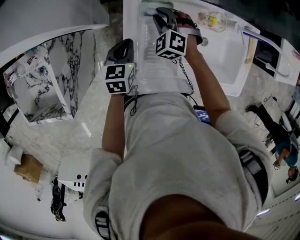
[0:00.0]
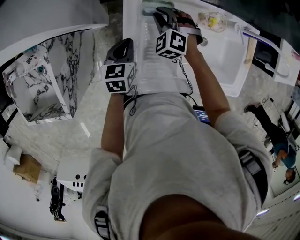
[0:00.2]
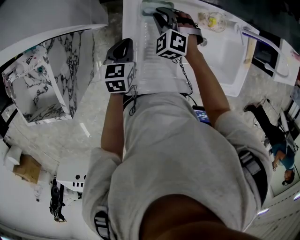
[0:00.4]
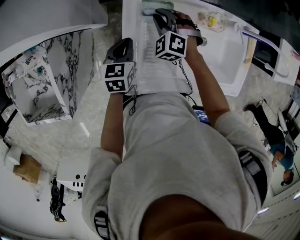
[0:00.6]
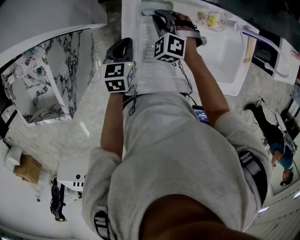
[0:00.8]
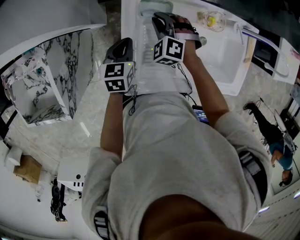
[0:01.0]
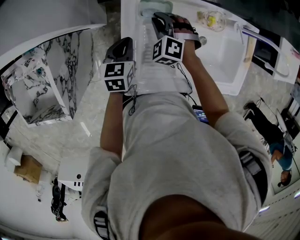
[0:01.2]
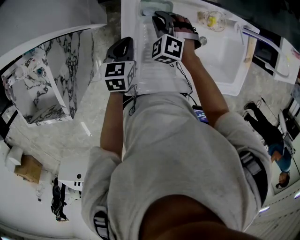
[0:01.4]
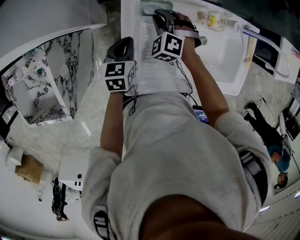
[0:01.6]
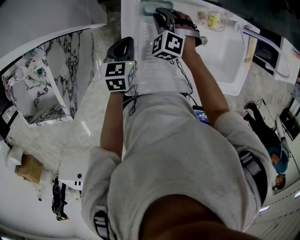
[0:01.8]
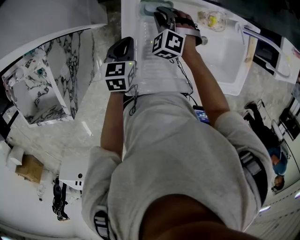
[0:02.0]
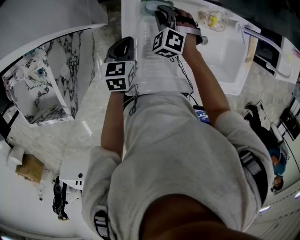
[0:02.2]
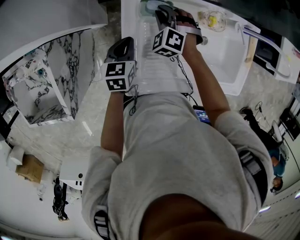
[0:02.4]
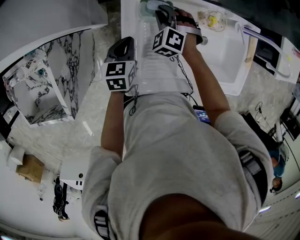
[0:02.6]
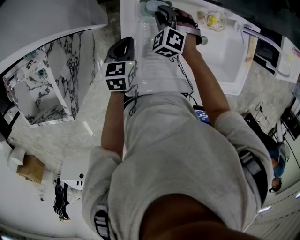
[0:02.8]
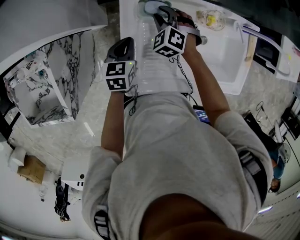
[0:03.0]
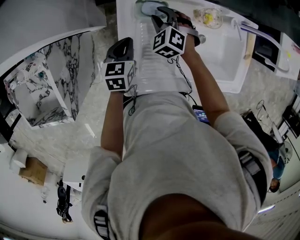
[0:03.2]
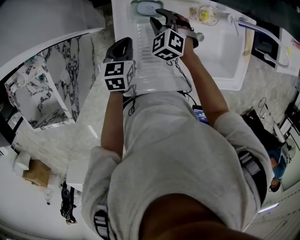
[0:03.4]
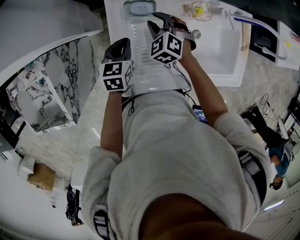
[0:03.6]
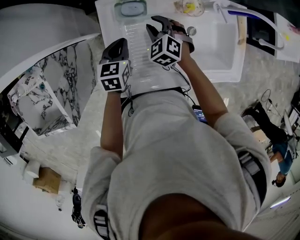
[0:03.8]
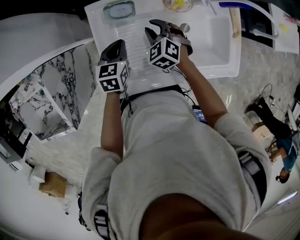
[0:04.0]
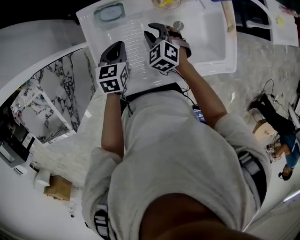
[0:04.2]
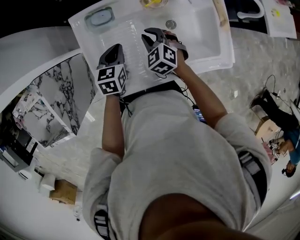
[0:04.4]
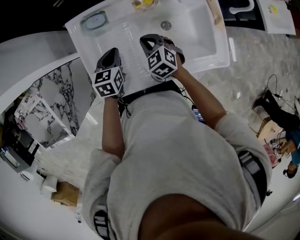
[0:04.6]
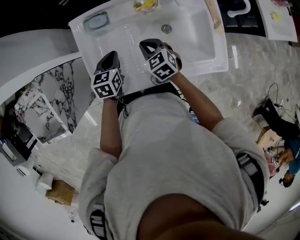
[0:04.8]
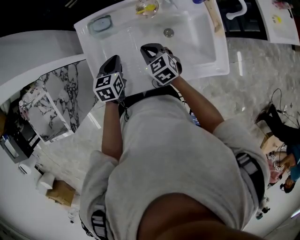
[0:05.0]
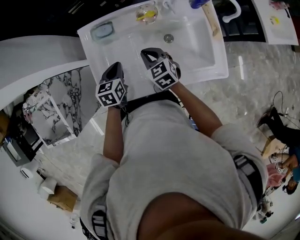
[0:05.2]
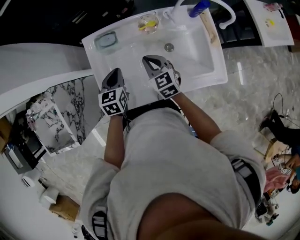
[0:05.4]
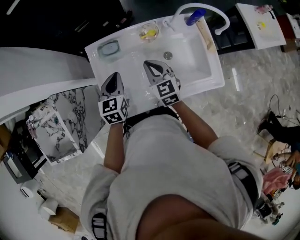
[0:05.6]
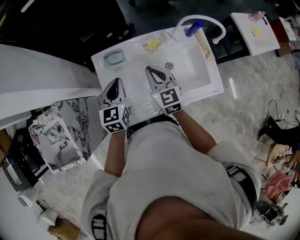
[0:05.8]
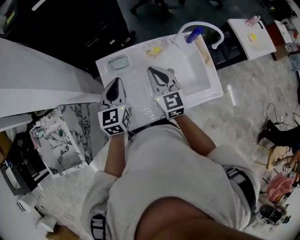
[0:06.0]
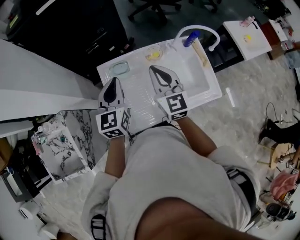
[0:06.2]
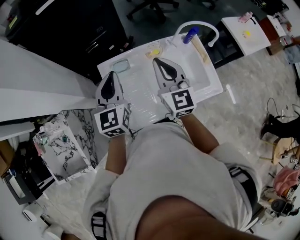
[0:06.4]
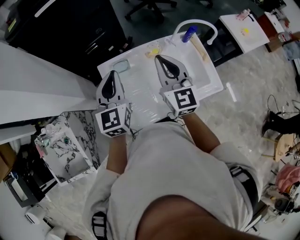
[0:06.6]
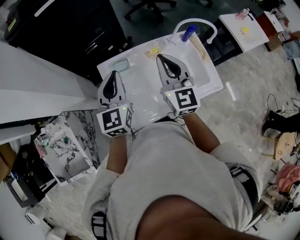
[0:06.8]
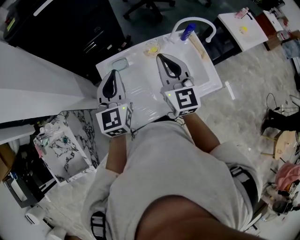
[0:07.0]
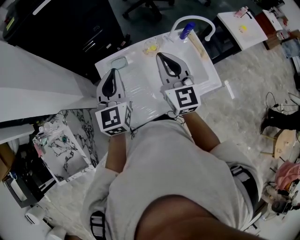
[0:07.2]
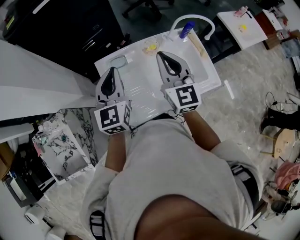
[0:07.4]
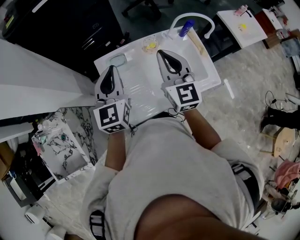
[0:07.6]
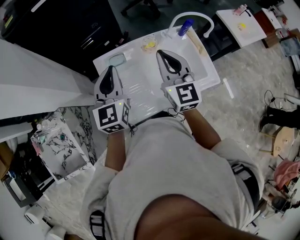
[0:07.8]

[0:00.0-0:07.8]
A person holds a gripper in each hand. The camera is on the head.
0:00.0 to 0:03.2: There are only small adjustments of the grippers.
0:03.2 to 0:04.6: The left gripper travels to the right by approximately 15 cm. The right gripper travels to the right and backward by approximately 20 cm, rotates about 30 degrees, and closes.
0:04.6 to 0:06.2: The two grippers go approximately 25 cm upward. The right gripper angles its fingers upward, by approximately 40 degrees; the left gripper angles its fingers upward, by roughly 30 degrees.
0:06.2 to 0:07.8: The right gripper shifts approximately 5 cm upward.

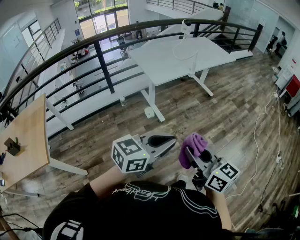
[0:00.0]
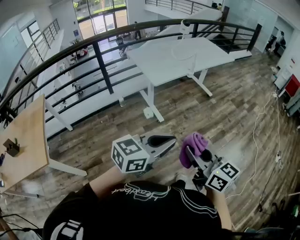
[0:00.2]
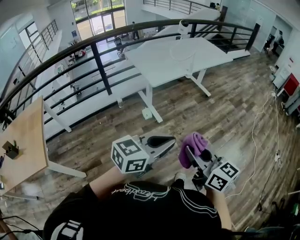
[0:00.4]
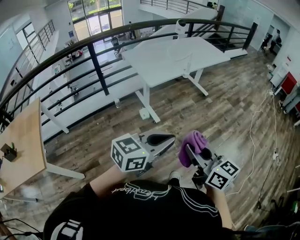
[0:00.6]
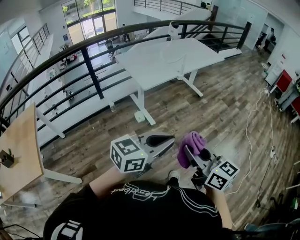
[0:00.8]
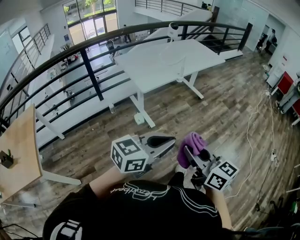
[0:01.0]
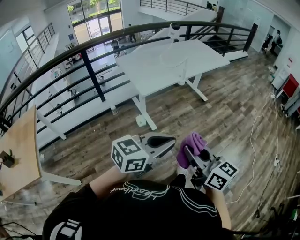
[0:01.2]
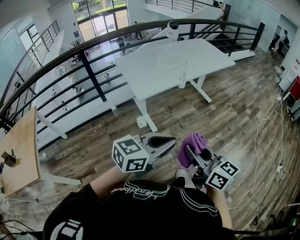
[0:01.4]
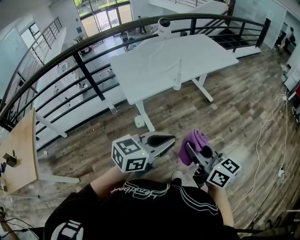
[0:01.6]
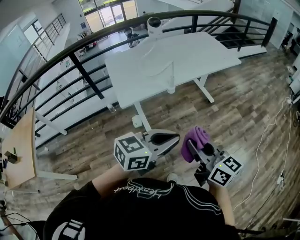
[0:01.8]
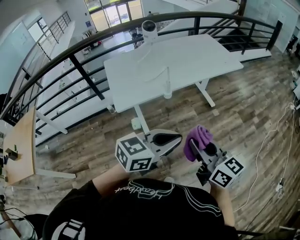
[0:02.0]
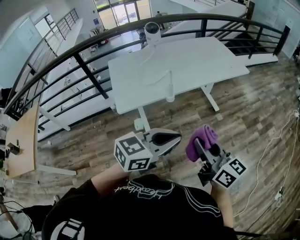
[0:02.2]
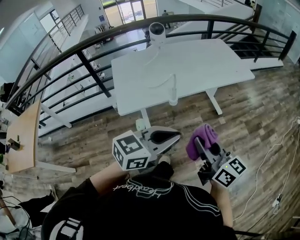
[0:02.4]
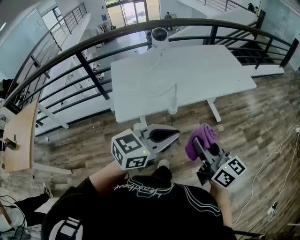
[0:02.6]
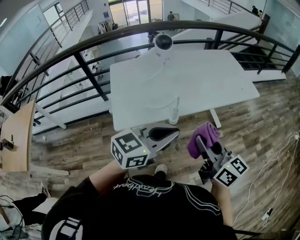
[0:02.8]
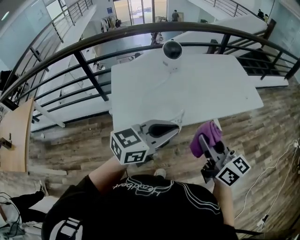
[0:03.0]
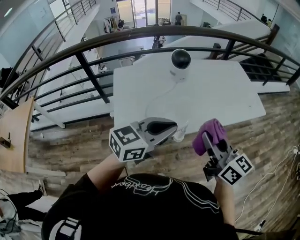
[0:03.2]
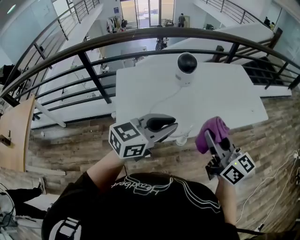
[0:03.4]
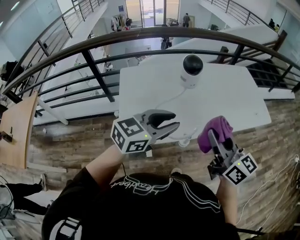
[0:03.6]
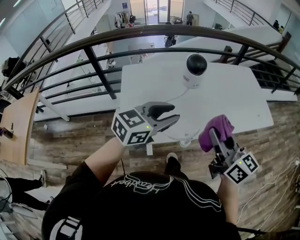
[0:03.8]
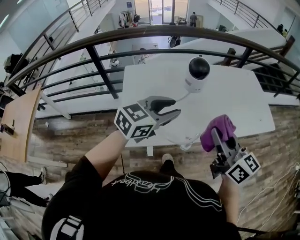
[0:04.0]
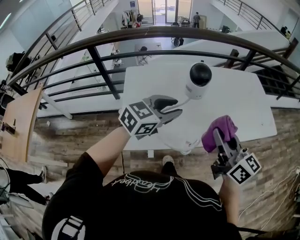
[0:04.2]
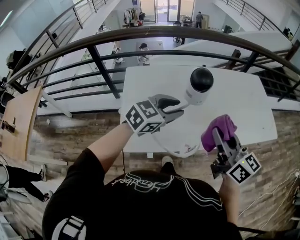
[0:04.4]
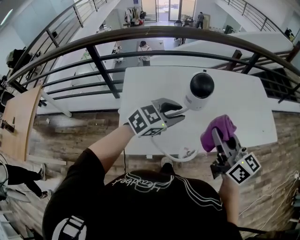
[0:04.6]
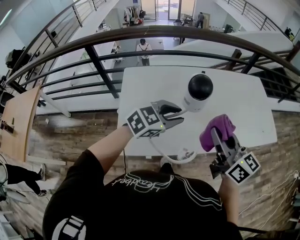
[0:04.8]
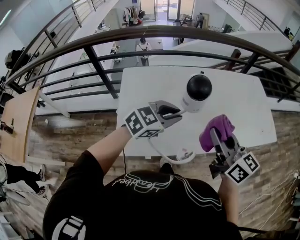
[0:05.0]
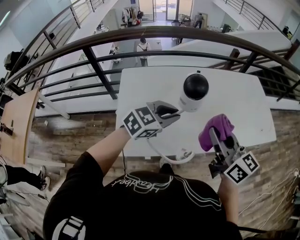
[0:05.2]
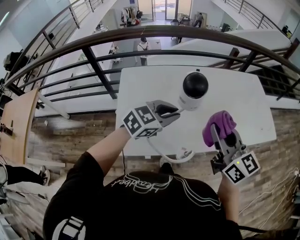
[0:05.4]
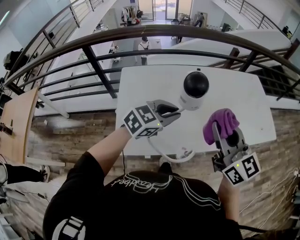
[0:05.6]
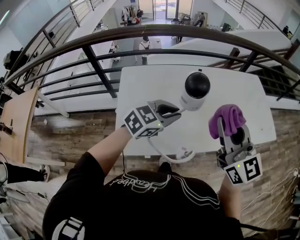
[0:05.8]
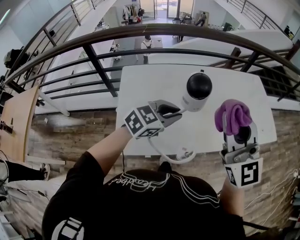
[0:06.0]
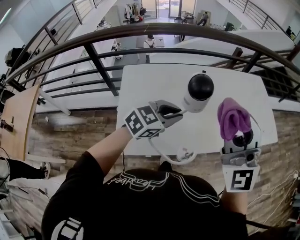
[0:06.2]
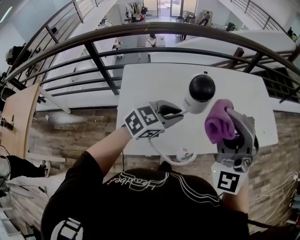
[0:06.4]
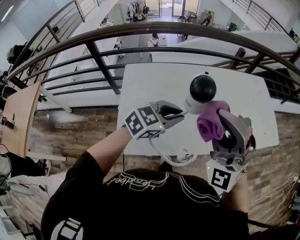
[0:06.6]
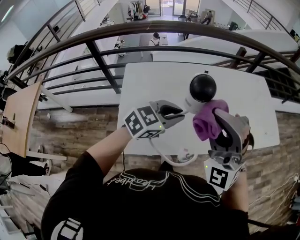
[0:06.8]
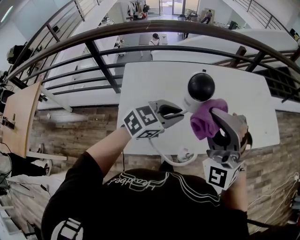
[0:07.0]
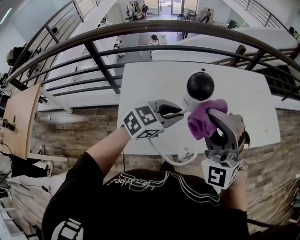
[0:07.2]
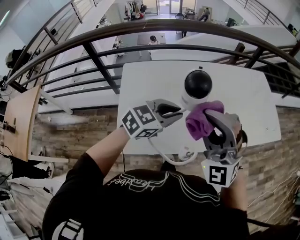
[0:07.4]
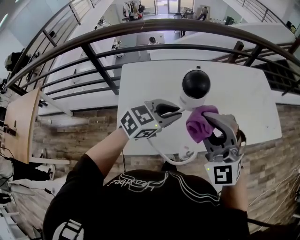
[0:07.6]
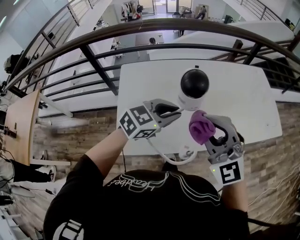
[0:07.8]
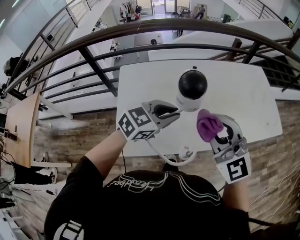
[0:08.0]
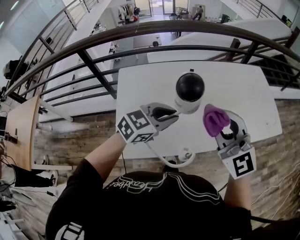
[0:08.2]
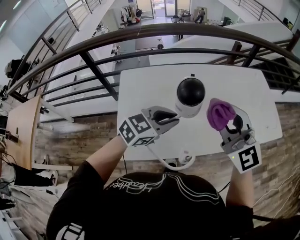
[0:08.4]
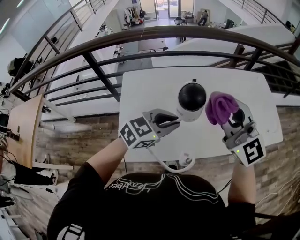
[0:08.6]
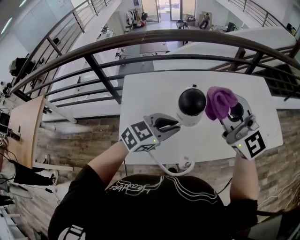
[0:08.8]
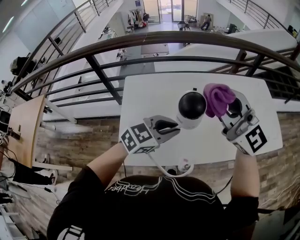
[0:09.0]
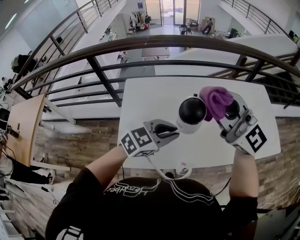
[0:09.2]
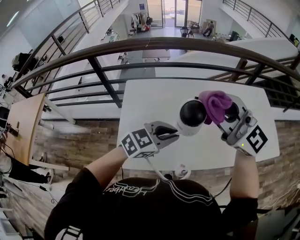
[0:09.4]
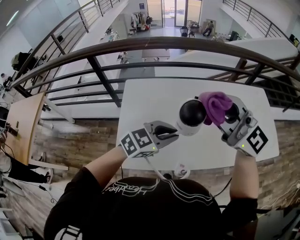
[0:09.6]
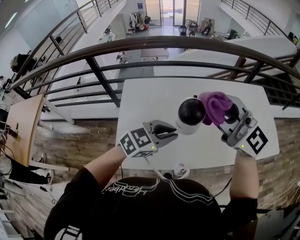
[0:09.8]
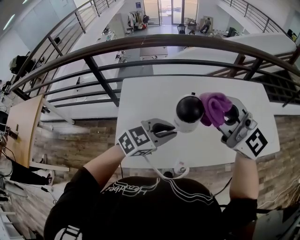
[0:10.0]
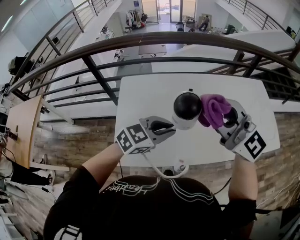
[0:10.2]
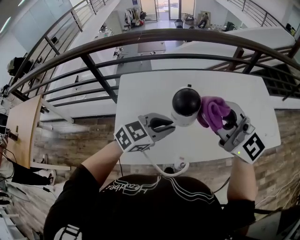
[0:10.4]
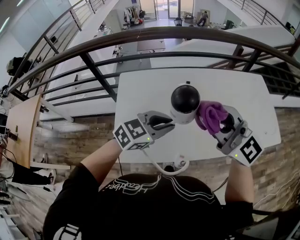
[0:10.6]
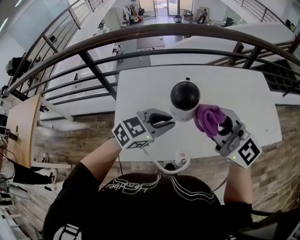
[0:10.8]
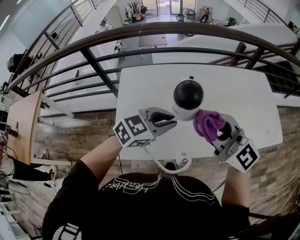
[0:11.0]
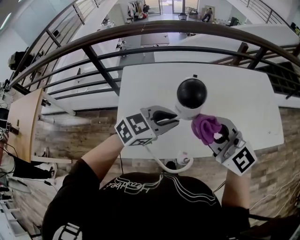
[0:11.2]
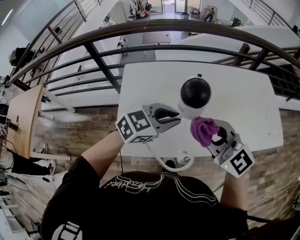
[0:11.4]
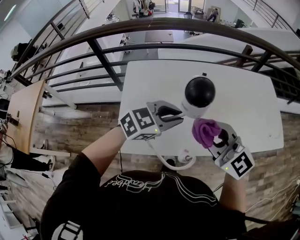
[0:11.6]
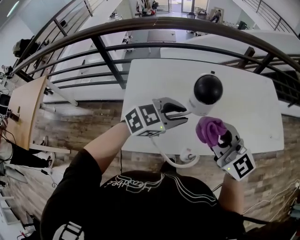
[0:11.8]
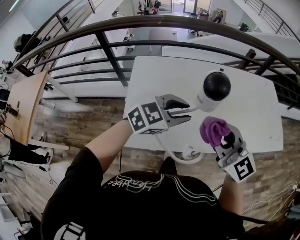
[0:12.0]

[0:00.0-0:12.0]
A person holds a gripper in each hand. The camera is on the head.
0:00.0 to 0:01.6: Both grippers move forward and to the right, about 35 cm.
0:01.6 to 0:03.0: The two grippers travel together, forward, about 40 cm.
0:03.0 to 0:04.4: The two grippers go roughly 20 cm forward. The left gripper turns by about 20 degrees, and opens.
0:04.4 to 0:06.0: The right gripper heads upward, covering some 10 cm, and twists approximately 40 degrees counterclockwise, seen from behind.
0:06.0 to 0:07.6: The right gripper heads downward and to the left, covering roughly 10 cm, and rotates about 30 degrees.
0:07.6 to 0:09.0: The right gripper travels forward and upward by some 15 cm, and swivels about 40 degrees.
0:09.0 to 0:10.4: The grippers make only small movements.
0:10.4 to 0:12.0: The right gripper heads downward and backward, covering roughly 10 cm.

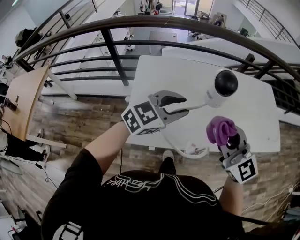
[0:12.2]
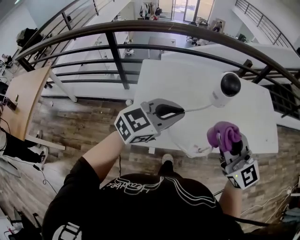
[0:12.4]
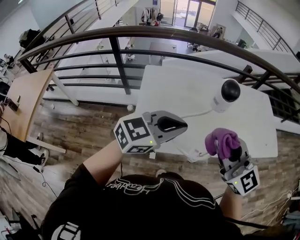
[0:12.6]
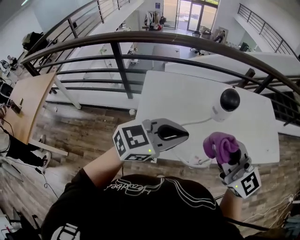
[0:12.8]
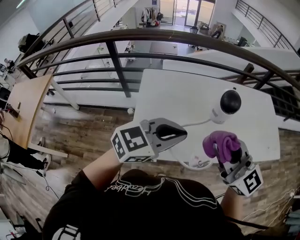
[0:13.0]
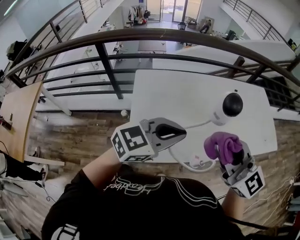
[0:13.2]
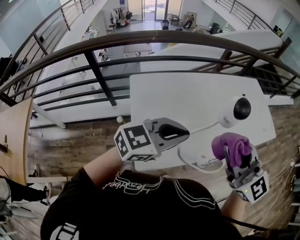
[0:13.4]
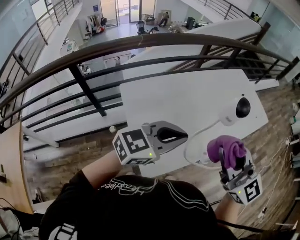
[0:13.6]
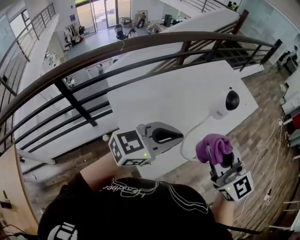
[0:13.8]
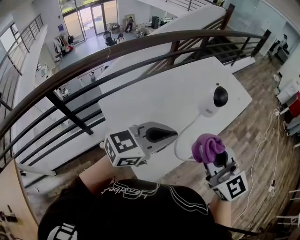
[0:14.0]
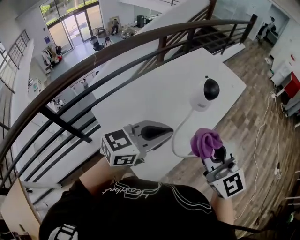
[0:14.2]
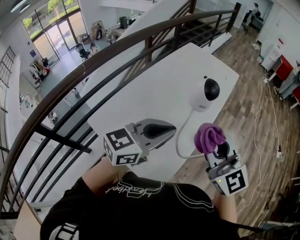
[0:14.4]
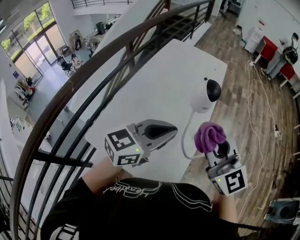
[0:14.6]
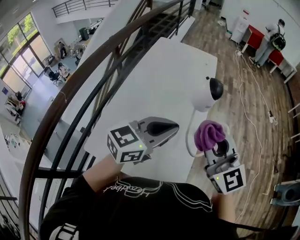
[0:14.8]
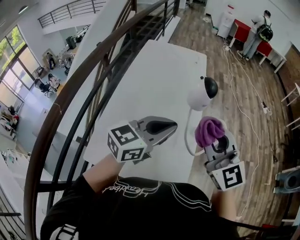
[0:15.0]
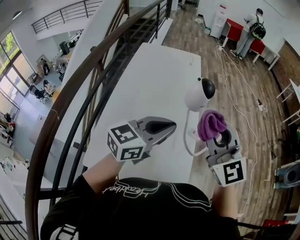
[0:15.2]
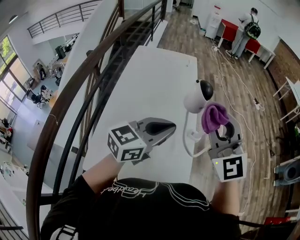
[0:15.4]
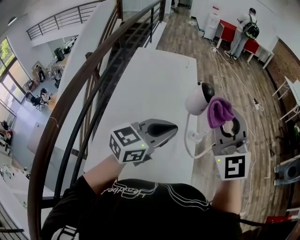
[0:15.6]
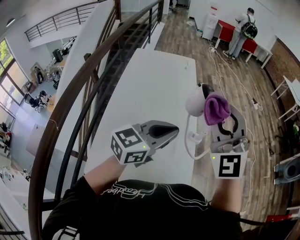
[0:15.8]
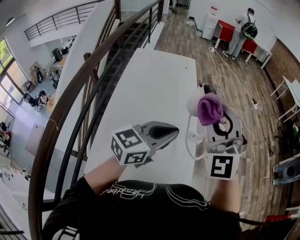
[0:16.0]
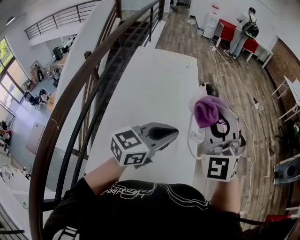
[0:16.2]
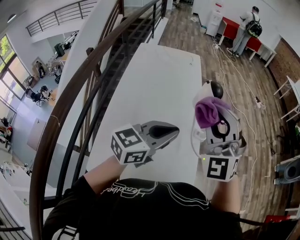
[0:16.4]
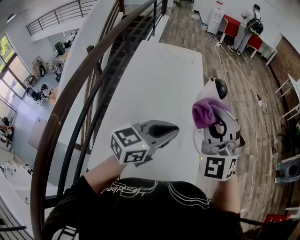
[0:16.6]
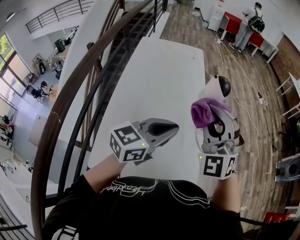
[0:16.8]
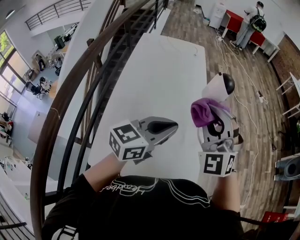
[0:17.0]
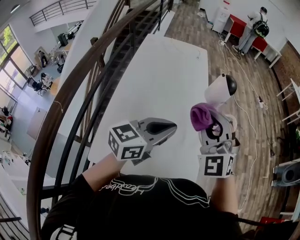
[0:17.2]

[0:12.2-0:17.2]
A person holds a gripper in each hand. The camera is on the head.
0:12.2 to 0:13.8: The grippers both shift upward by roughly 10 cm. The left gripper rotates roughly 40 degrees, and closes. The right gripper turns by about 30 degrees.
0:13.8 to 0:15.6: The right gripper shifts by about 15 cm, and swivels roughly 70 degrees; the left gripper ends up approximately 15 cm from where it was, and swivels roughly 40 degrees.
0:15.6 to 0:17.2: The right gripper heads downward and to the left, covering about 15 cm, and turns by about 20 degrees, while the left gripper shifts approximately 5 cm downward.
